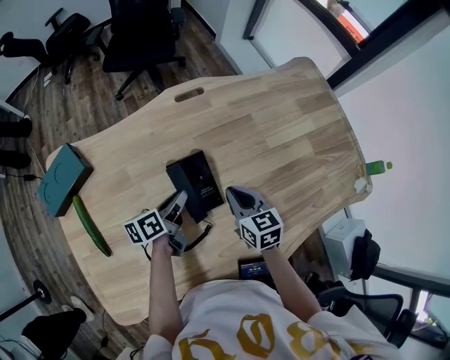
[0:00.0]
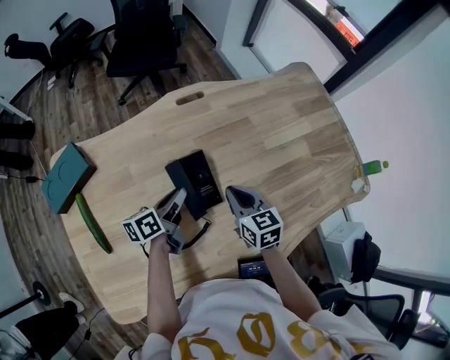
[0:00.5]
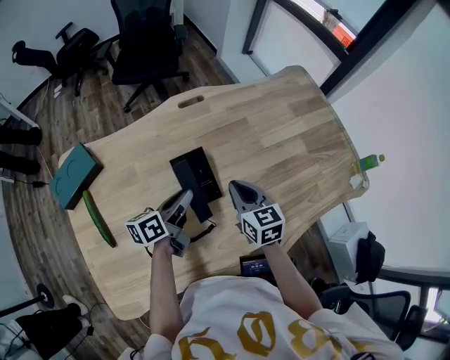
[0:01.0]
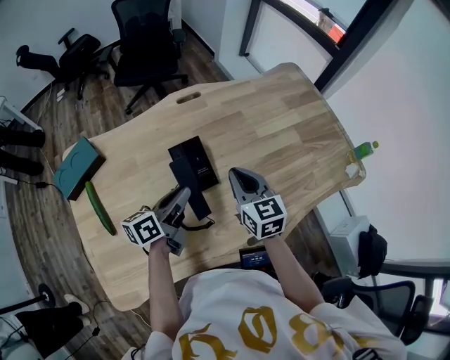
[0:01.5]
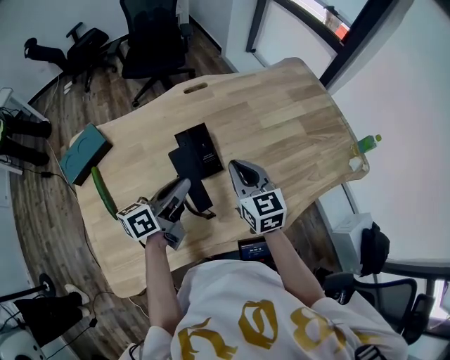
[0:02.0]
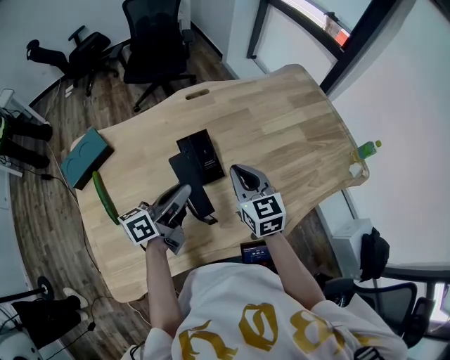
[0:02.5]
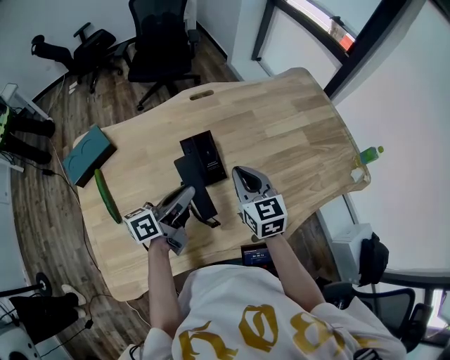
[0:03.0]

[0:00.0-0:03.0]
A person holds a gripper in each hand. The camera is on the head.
0:00.0 to 0:01.5: The right gripper moves upward, roughly 10 cm, while the left gripper moves upward and backward, some 15 cm, and turns by some 20 degrees.
0:01.5 to 0:03.0: The grippers move only a little.

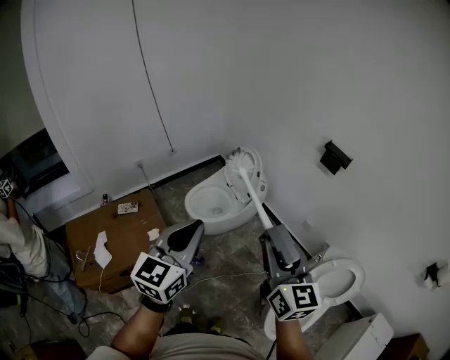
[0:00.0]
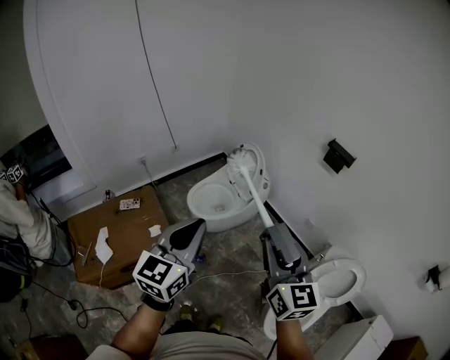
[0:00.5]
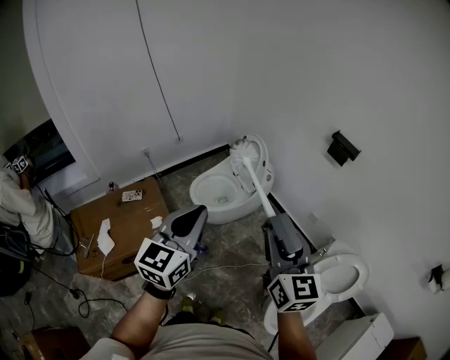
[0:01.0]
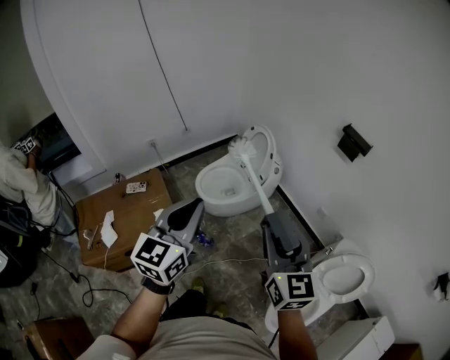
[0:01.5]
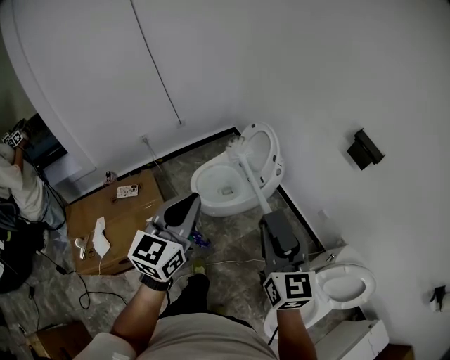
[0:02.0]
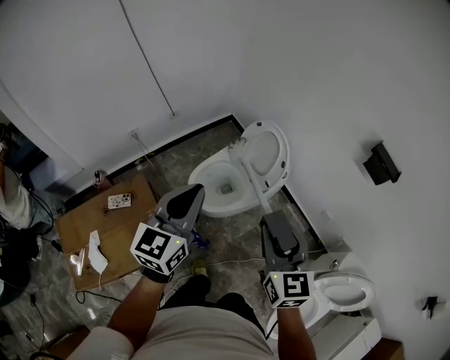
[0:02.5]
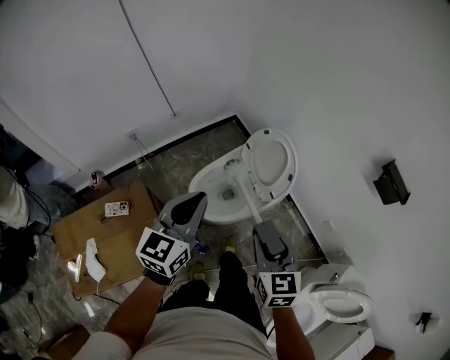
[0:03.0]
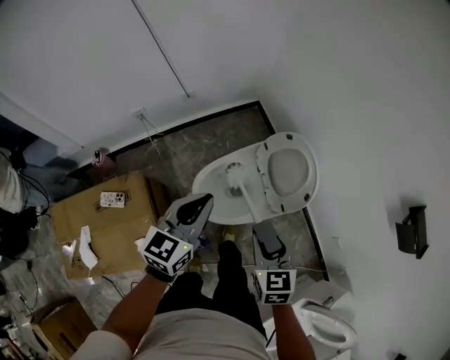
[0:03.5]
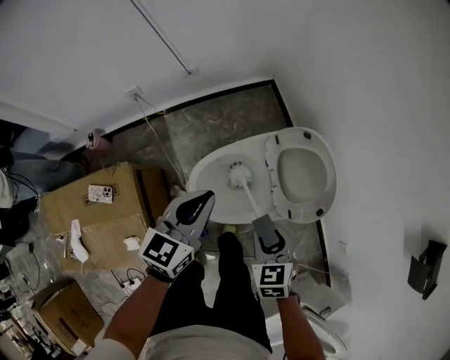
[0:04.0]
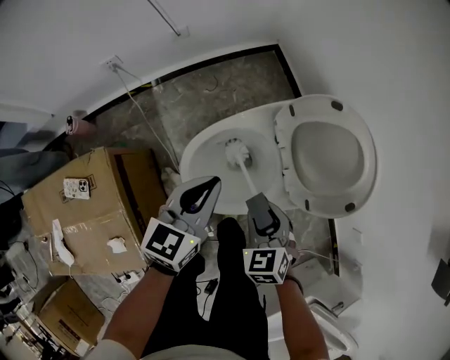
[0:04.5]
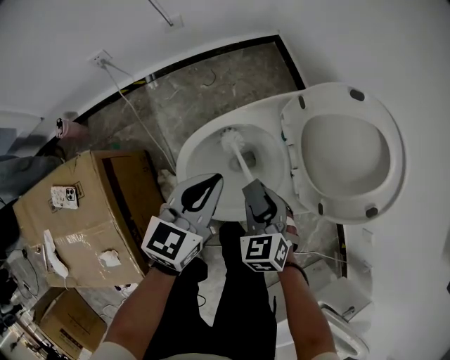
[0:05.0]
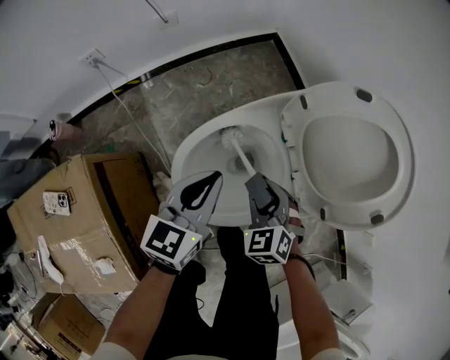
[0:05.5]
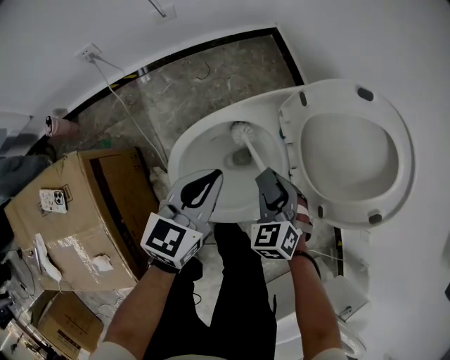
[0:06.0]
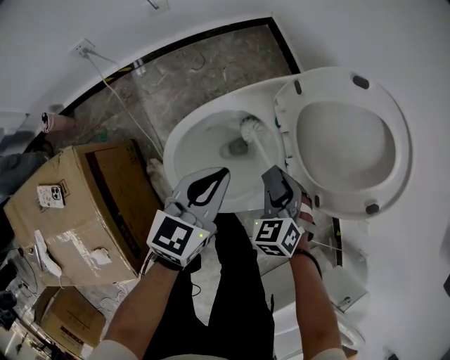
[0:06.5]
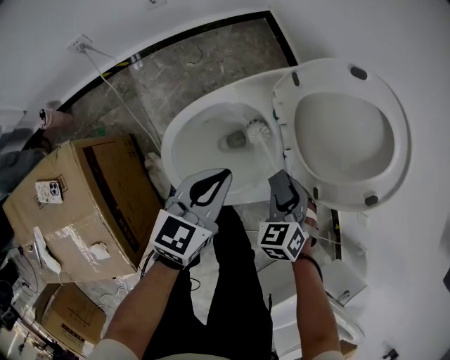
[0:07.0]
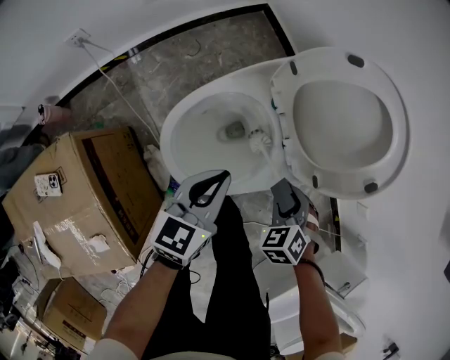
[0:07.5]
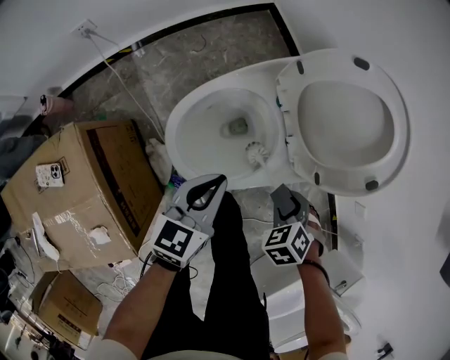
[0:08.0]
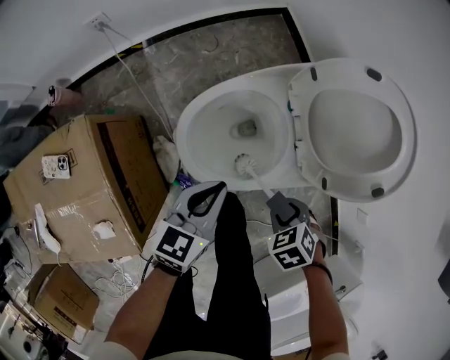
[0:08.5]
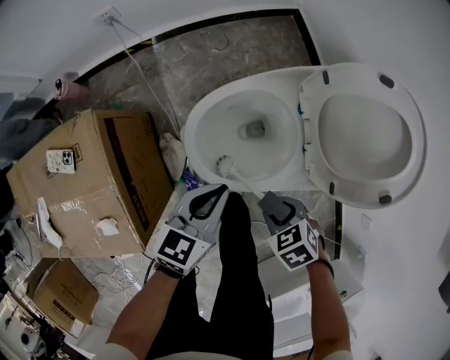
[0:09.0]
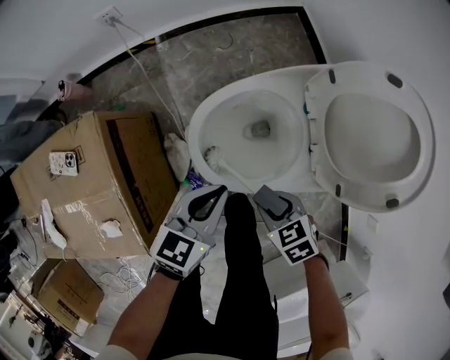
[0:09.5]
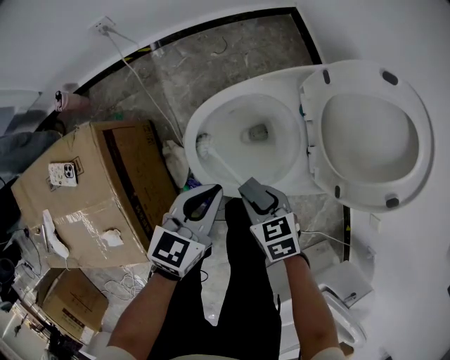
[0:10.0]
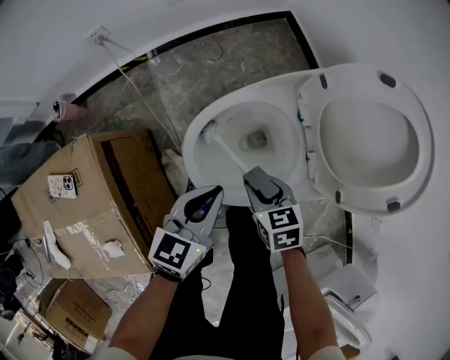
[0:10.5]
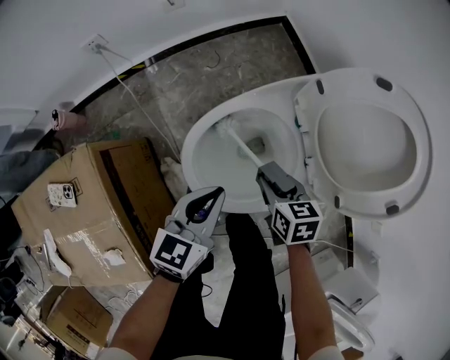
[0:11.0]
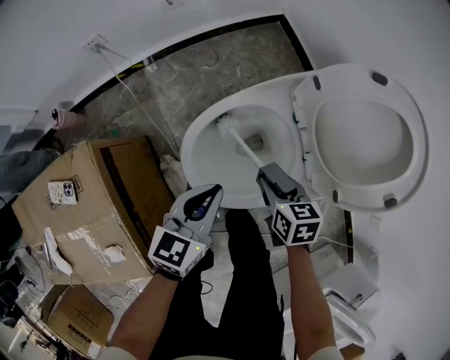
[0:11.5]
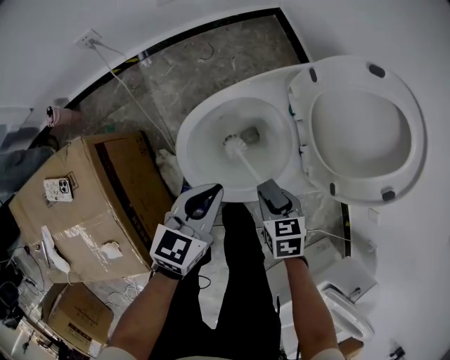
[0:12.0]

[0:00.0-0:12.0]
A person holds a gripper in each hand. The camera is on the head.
0:00.0 to 0:02.0: The right gripper travels forward and downward by roughly 15 cm. Meanwhile the left gripper heads forward, covering roughly 15 cm.
0:02.0 to 0:04.0: Both grippers are carried forward, roughly 40 cm. Both grippers travel together downward, about 35 cm. The right gripper angles its fingers downward, by approximately 40 degrees.
0:04.0 to 0:06.0: Both grippers move downward, some 25 cm. The right gripper turns by roughly 30 degrees.
0:06.0 to 0:08.0: The right gripper shifts by some 15 cm, and swivels roughly 30 degrees. Meanwhile the left gripper ends up approximately 10 cm from where it was.
0:08.0 to 0:10.0: The right gripper changes place by some 15 cm, and changes its angle by approximately 40 degrees; the left gripper ends up some 5 cm from where it was.
0:10.0 to 0:12.0: The right gripper shifts approximately 5 cm to the right, and travels forward and back again, roughly 10 cm each way.

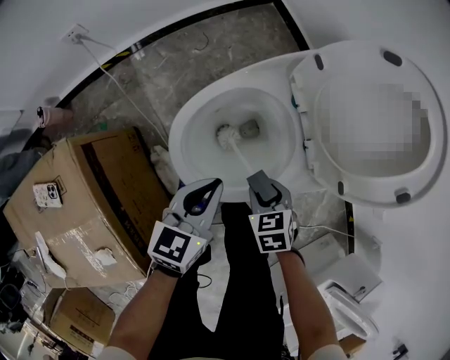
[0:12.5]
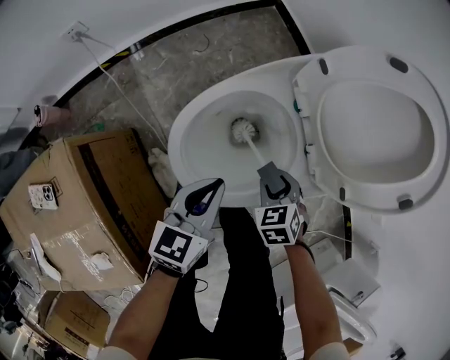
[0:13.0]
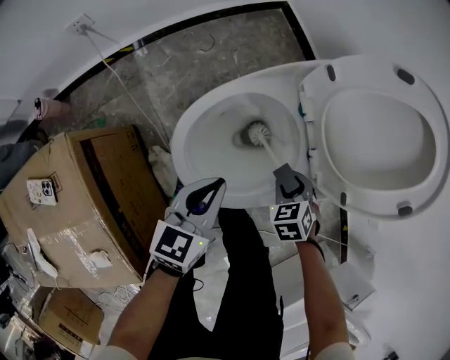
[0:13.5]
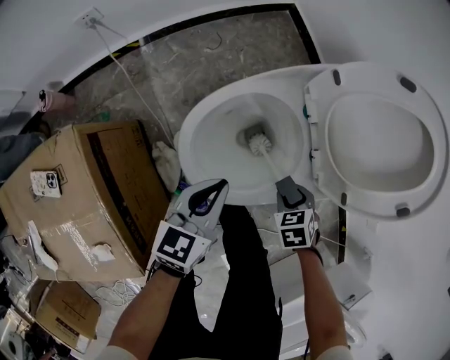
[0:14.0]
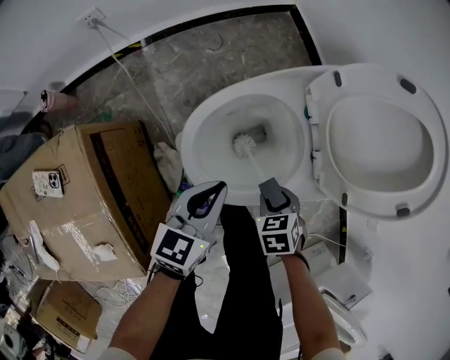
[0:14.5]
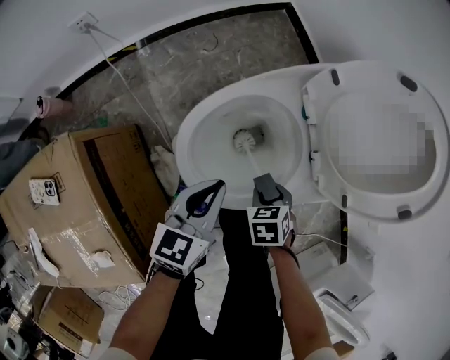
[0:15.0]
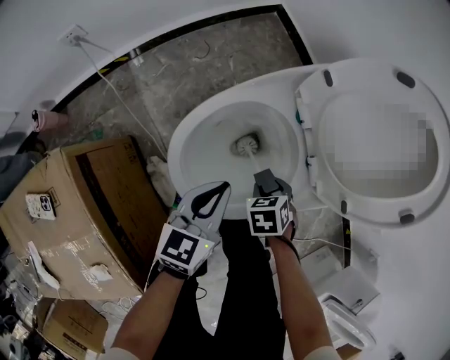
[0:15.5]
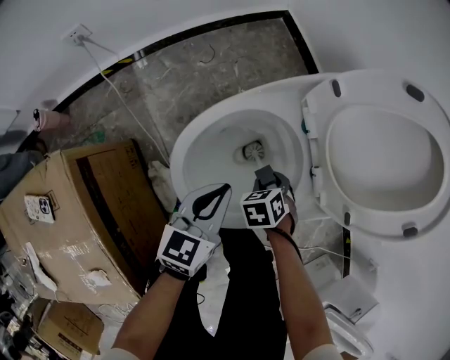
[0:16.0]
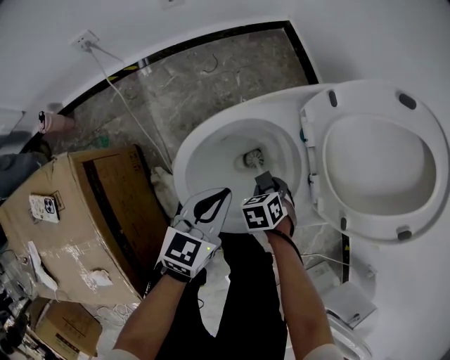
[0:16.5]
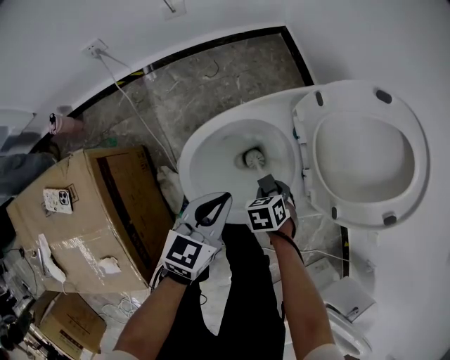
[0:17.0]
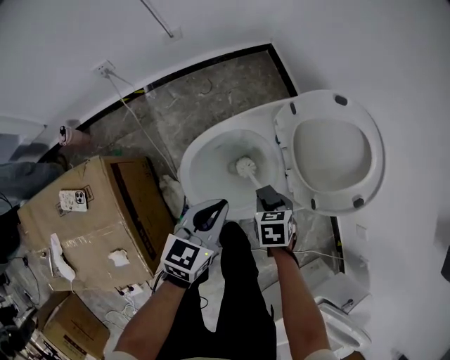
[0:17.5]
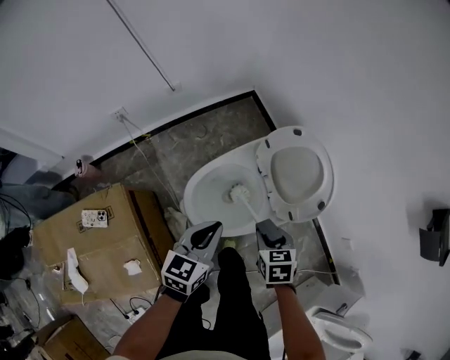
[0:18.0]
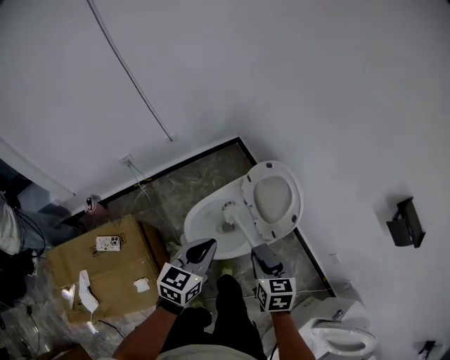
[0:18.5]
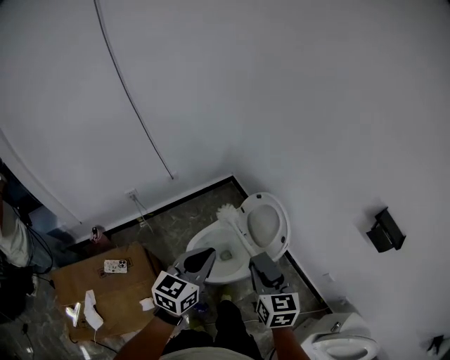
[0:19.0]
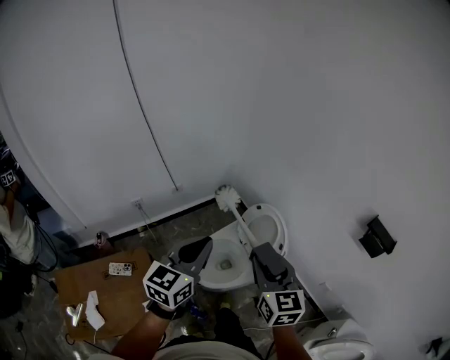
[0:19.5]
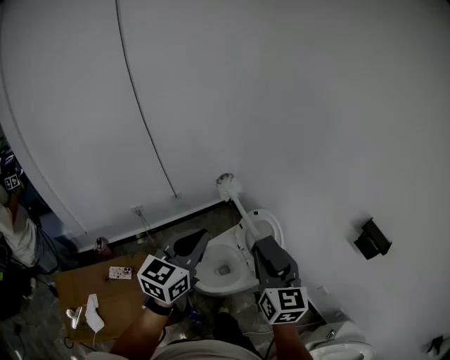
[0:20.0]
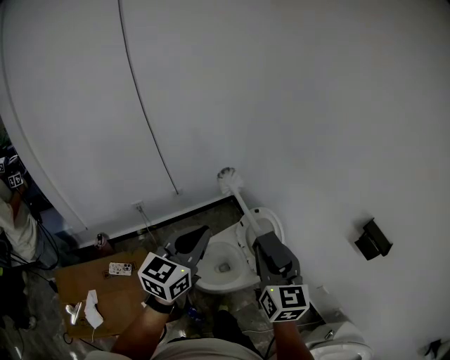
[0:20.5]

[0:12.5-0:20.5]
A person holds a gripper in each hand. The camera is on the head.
0:14.5 to 0:16.5: The right gripper goes about 10 cm downward, while the left gripper changes place by roughly 5 cm.
0:16.5 to 0:18.5: The grippers both shift upward by approximately 50 cm. The right gripper tips its fingers upward by approximately 30 degrees.
0:18.5 to 0:20.5: Both grippers move upward, approximately 30 cm. The left gripper changes its angle by about 20 degrees. Meanwhile the right gripper points its fingers some 40 degrees further upward.

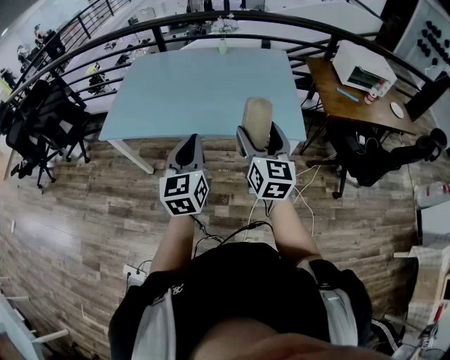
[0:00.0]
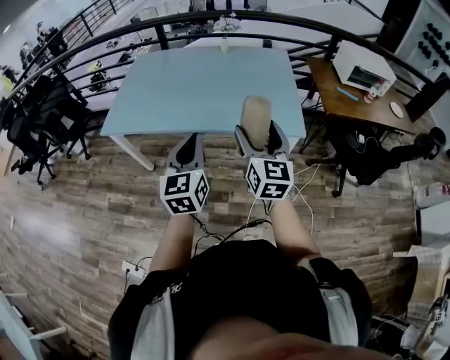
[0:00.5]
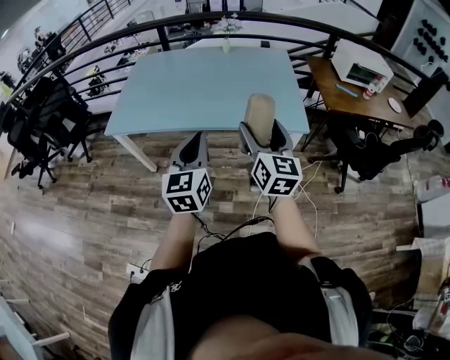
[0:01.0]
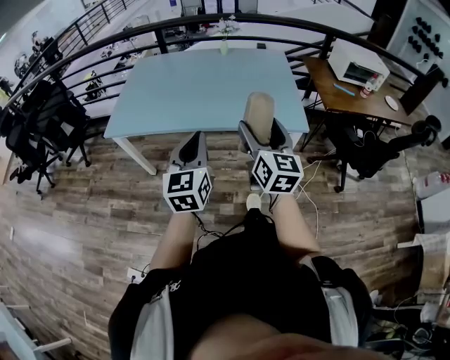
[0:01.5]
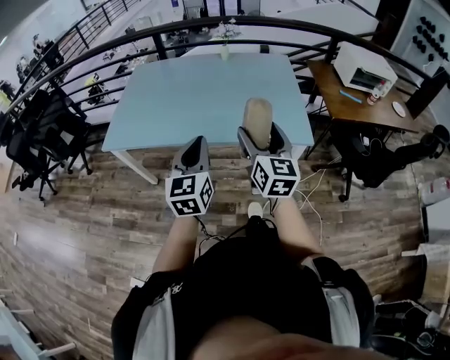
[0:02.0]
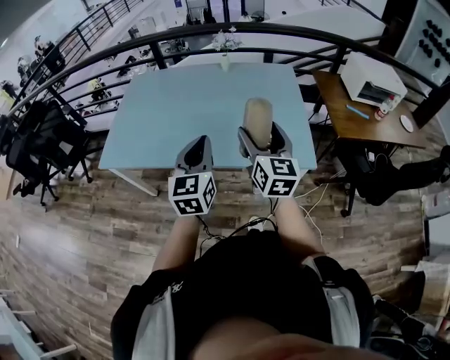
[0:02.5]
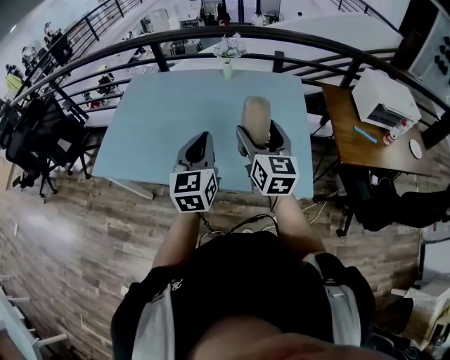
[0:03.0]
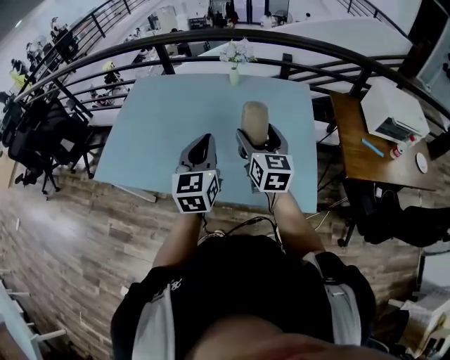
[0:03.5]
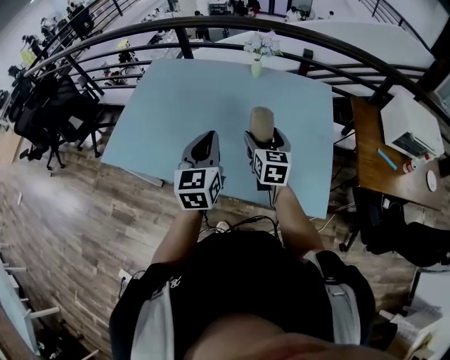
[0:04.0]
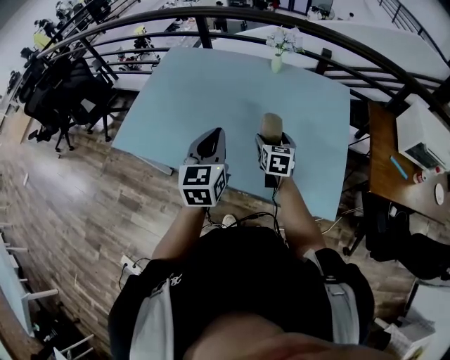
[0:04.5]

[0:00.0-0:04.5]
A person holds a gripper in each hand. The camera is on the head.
0:02.0 to 0:04.5: The left gripper travels forward by roughly 30 cm; the right gripper moves forward and downward, roughly 40 cm, and rotates about 30 degrees.
